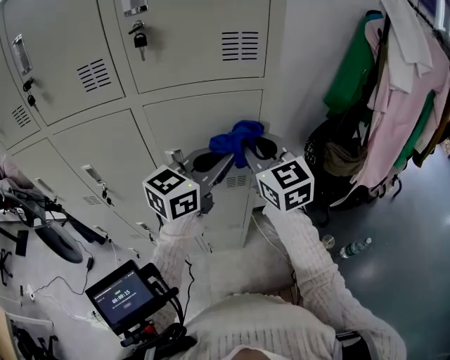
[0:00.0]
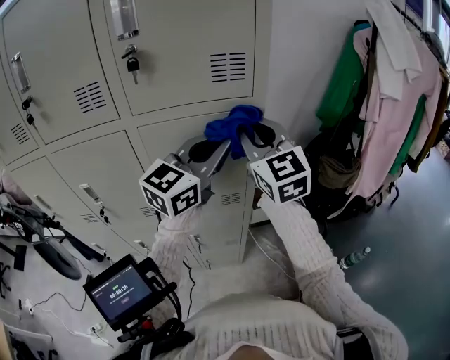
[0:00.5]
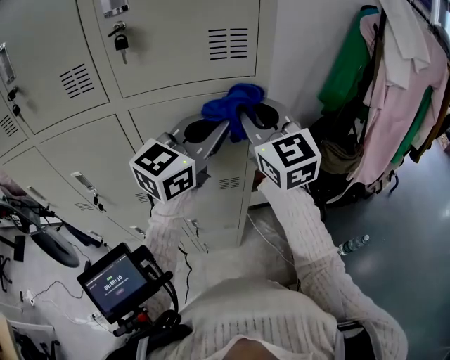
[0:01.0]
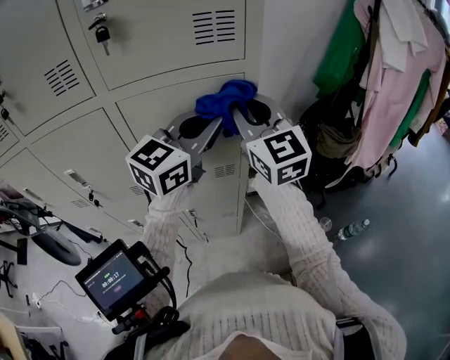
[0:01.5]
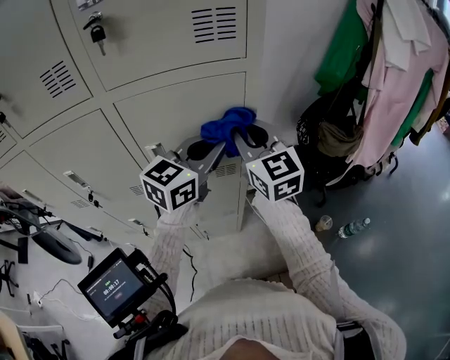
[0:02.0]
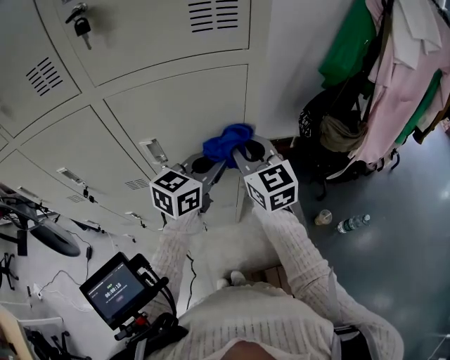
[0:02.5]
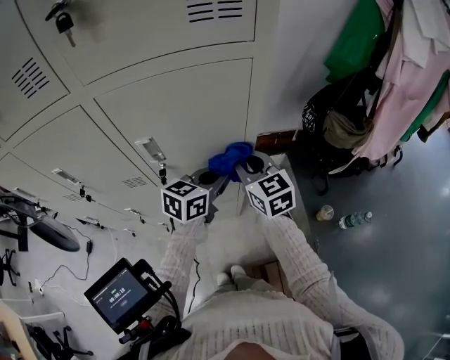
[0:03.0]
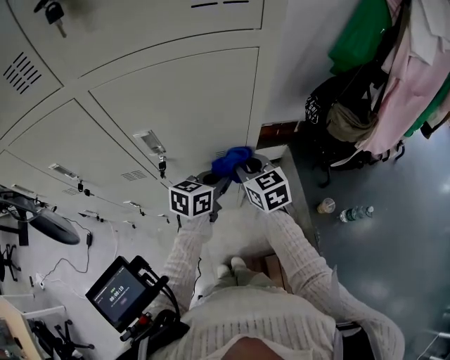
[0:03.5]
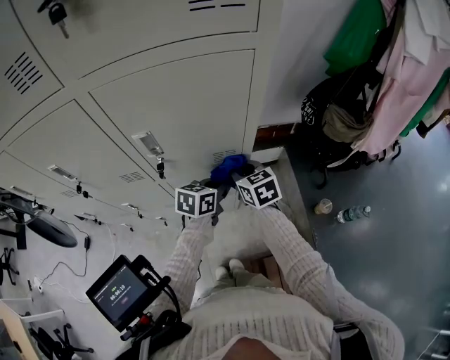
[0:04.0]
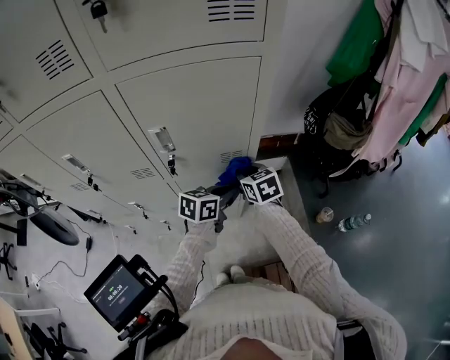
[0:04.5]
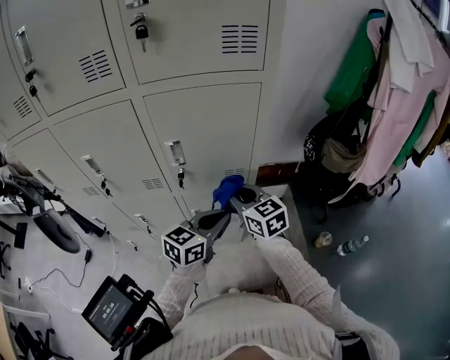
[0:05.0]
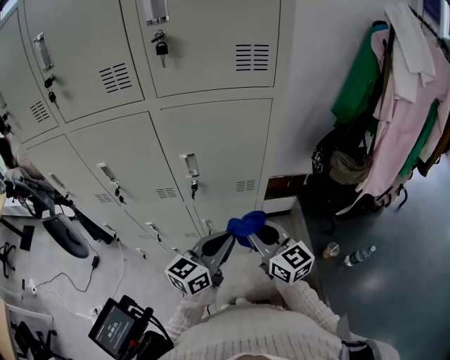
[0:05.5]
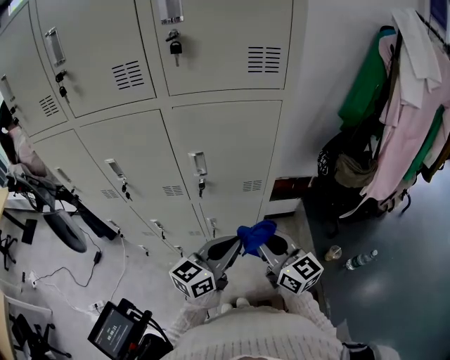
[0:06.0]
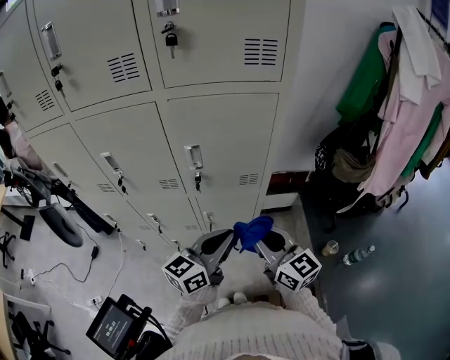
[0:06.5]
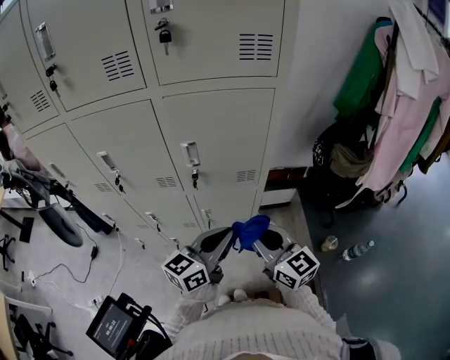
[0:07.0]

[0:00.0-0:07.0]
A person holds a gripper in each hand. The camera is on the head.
0:00.0 to 0:02.0: The right gripper moves roughly 10 cm upward and comes back. The left gripper reaches roughly 5 cm upward, then returns.
0:02.0 to 0:03.5: The grippers both shift downward by roughly 25 cm. The right gripper changes its angle by roughly 30 degrees; the left gripper changes its angle by approximately 30 degrees.
0:03.5 to 0:05.0: Both grippers move backward and upward, approximately 15 cm.
0:05.0 to 0:07.0: The right gripper moves backward, some 15 cm, while the left gripper travels backward by about 5 cm.

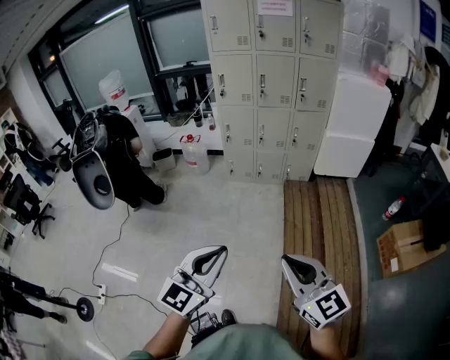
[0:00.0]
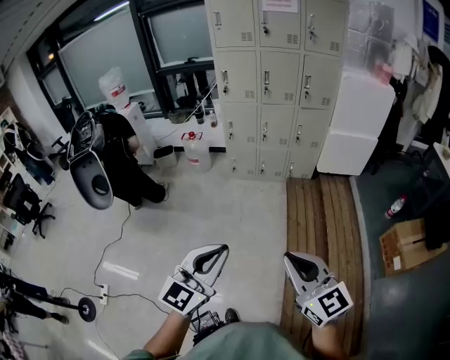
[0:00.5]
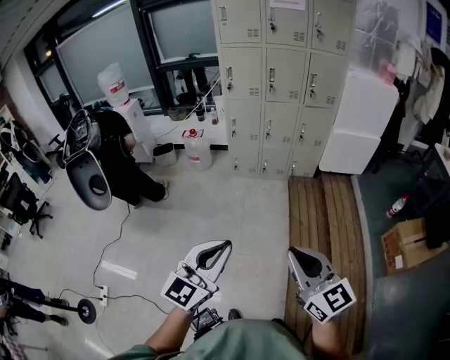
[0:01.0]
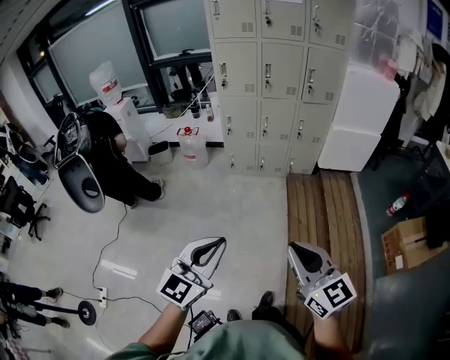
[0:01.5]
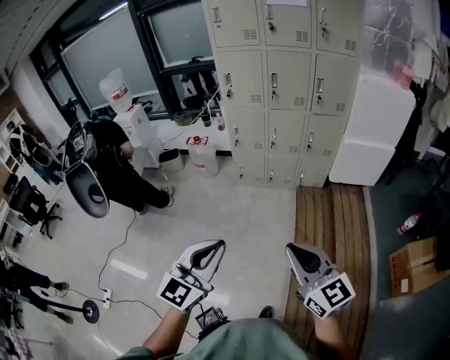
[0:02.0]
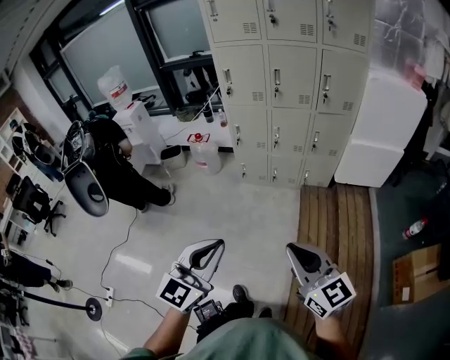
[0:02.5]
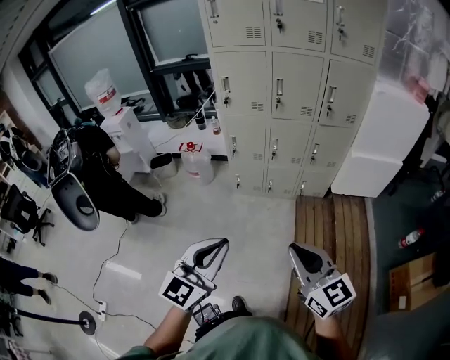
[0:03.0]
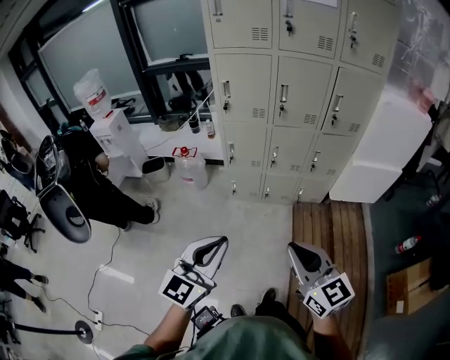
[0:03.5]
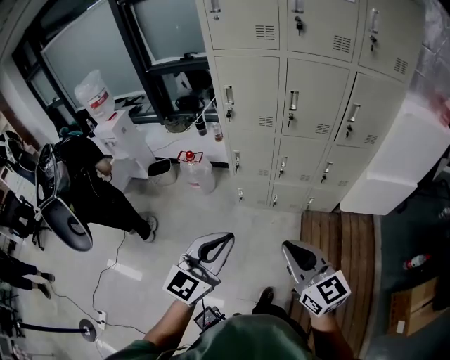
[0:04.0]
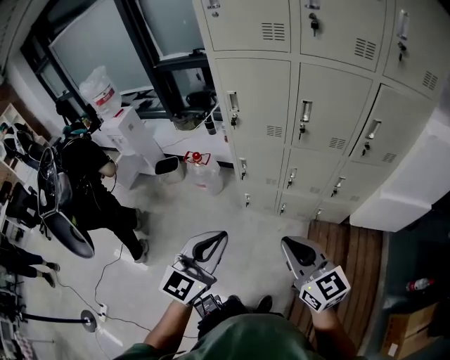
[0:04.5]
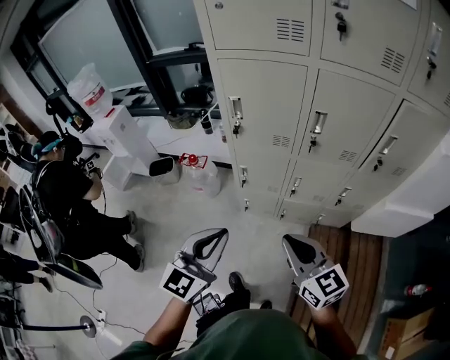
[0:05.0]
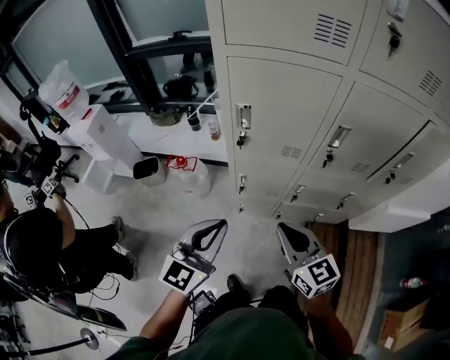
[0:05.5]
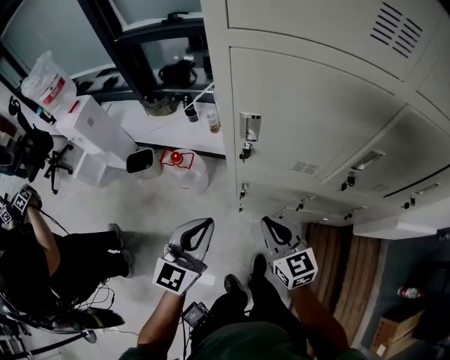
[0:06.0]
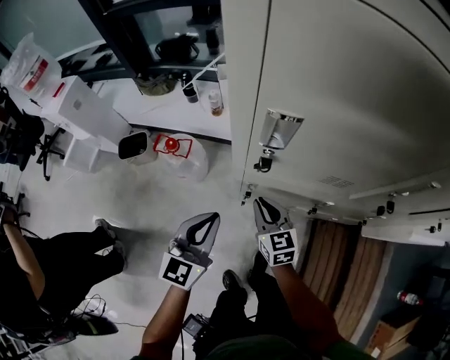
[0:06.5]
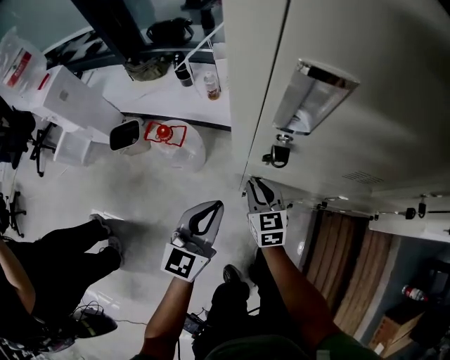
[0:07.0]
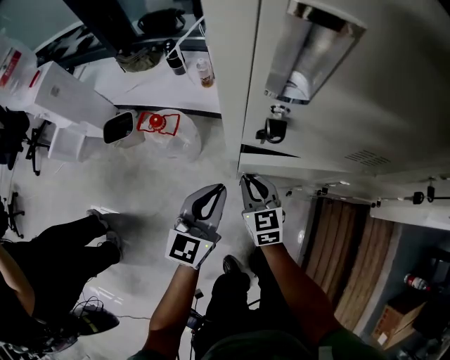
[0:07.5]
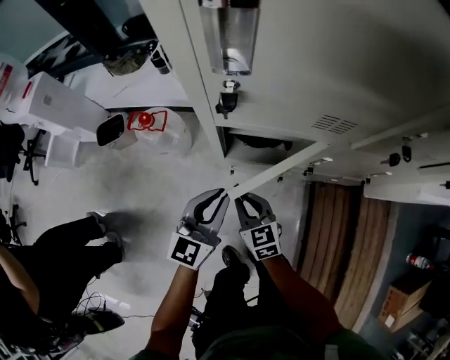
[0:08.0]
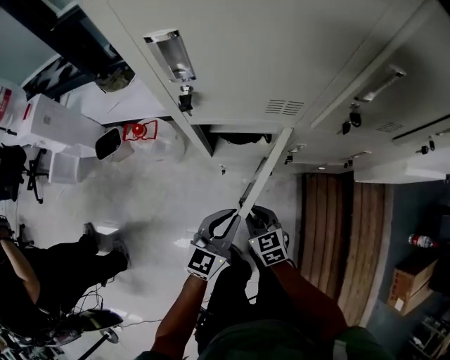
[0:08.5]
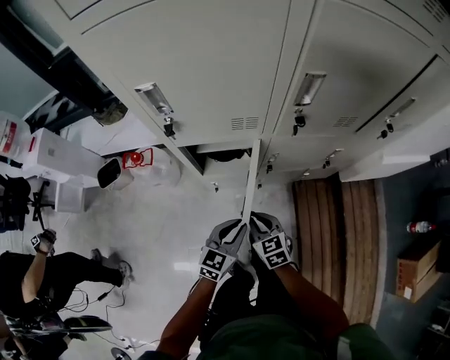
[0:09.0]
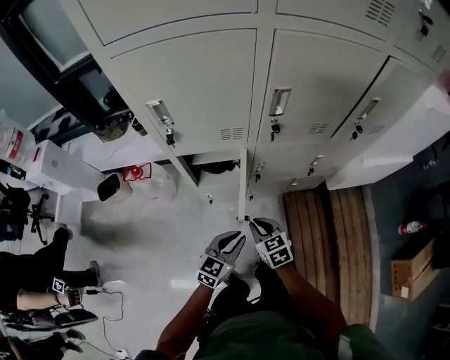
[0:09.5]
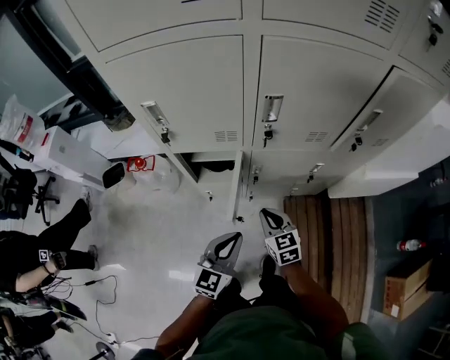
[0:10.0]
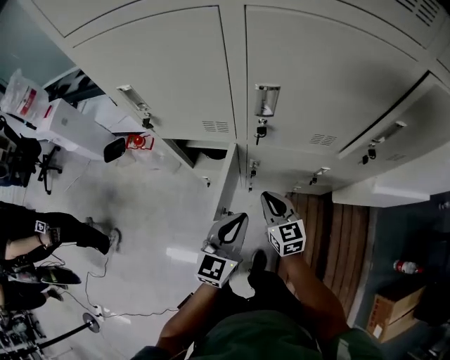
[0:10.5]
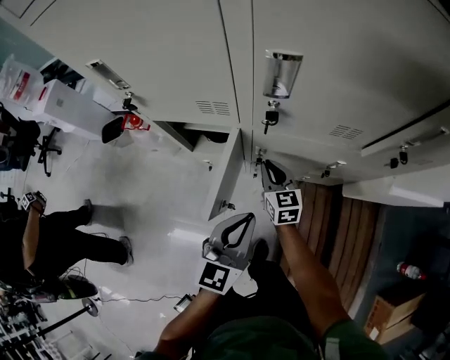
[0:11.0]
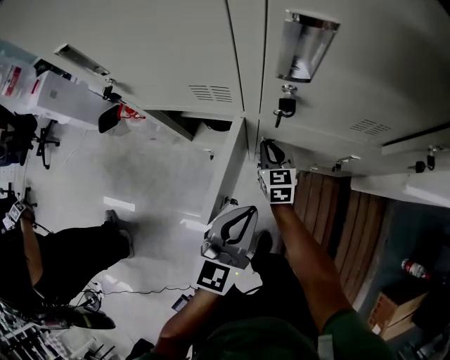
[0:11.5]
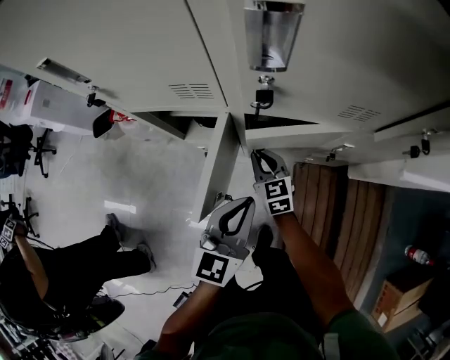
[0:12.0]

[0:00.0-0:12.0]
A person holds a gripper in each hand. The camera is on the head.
0:00.0 to 0:02.0: Both grippers travel together forward, some 20 cm.
0:02.0 to 0:04.0: Both grippers travel together forward, about 35 cm.
0:04.0 to 0:06.0: The two grippers travel together, forward, approximately 50 cm.
0:06.0 to 0:08.0: The two grippers go roughly 25 cm downward.
0:08.0 to 0:10.0: The left gripper is displaced to the right, backward and upward by some 30 cm. Meanwhile the right gripper heads to the right and upward, covering roughly 30 cm.
0:10.0 to 0:12.0: The right gripper heads downward and forward, covering roughly 20 cm. The left gripper travels forward, to the right and downward by some 15 cm.

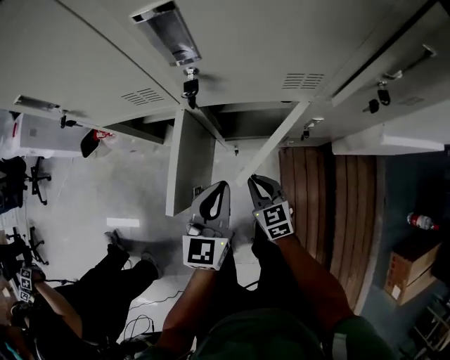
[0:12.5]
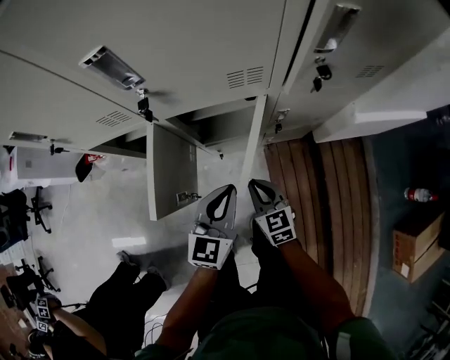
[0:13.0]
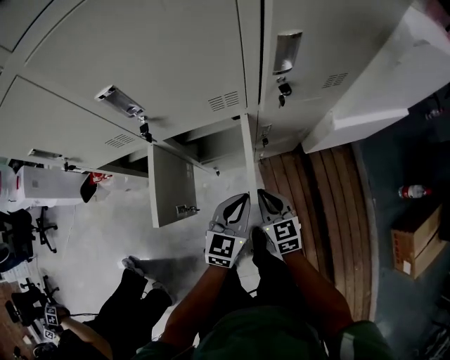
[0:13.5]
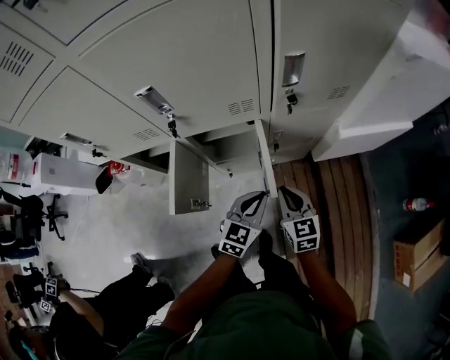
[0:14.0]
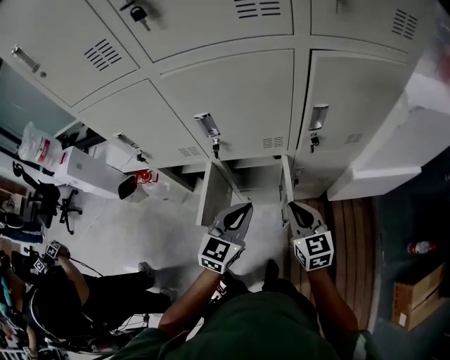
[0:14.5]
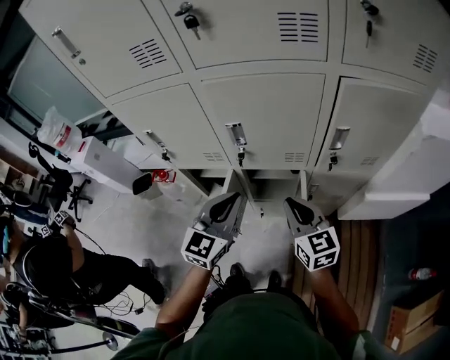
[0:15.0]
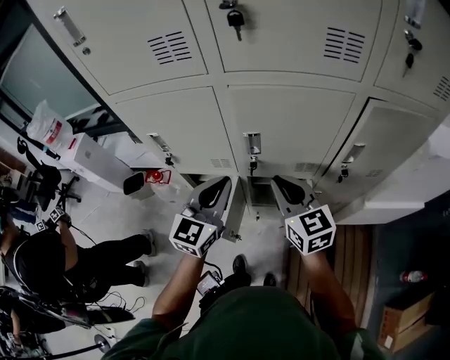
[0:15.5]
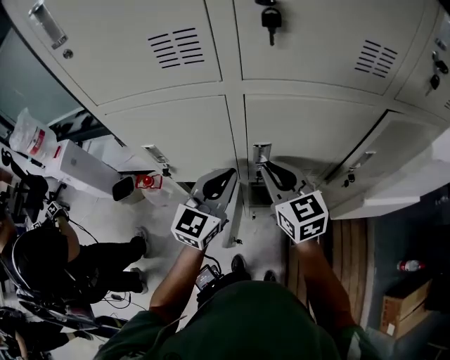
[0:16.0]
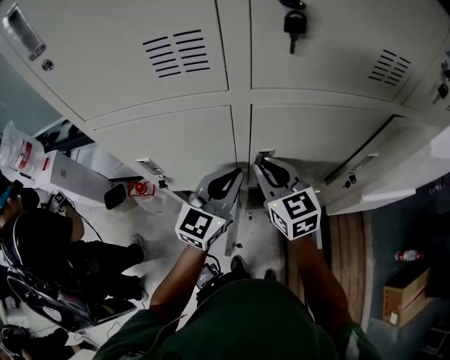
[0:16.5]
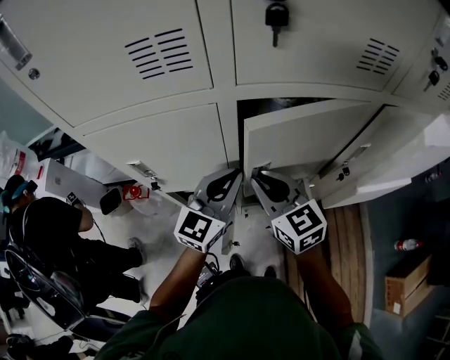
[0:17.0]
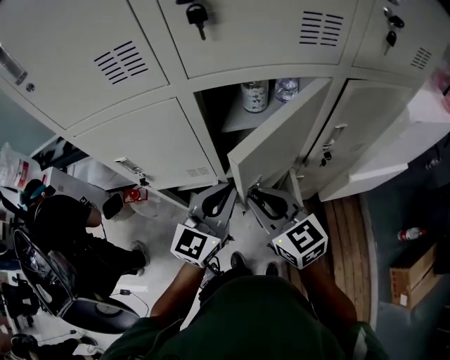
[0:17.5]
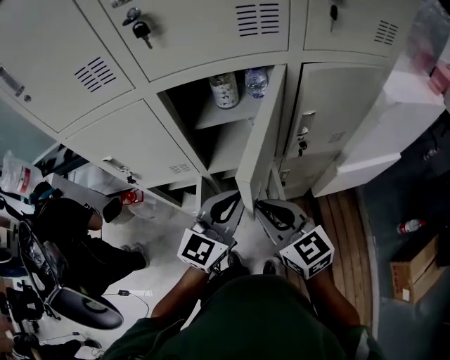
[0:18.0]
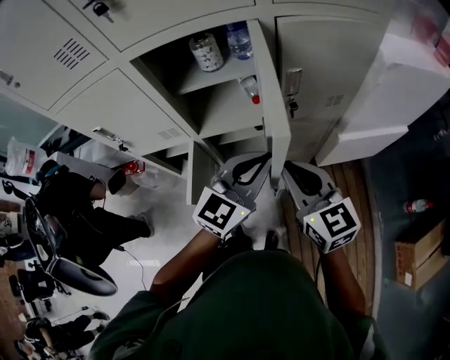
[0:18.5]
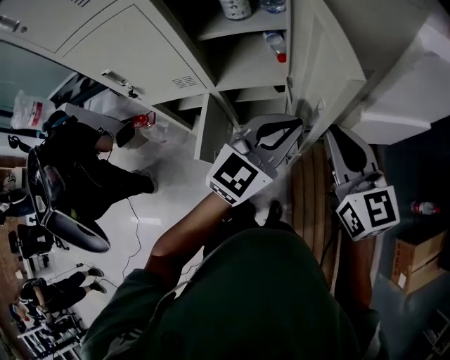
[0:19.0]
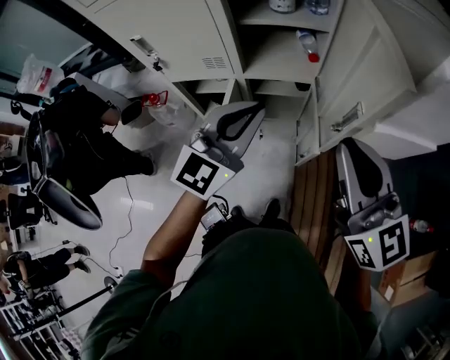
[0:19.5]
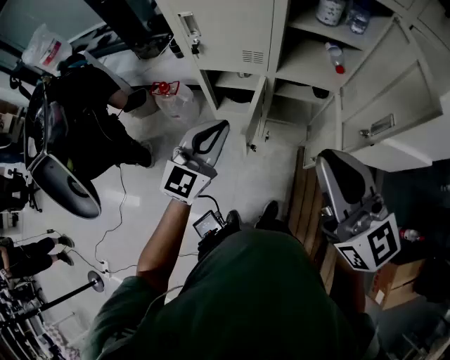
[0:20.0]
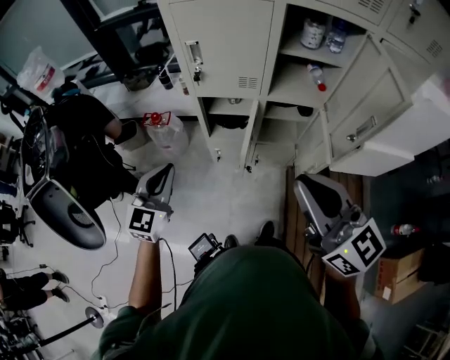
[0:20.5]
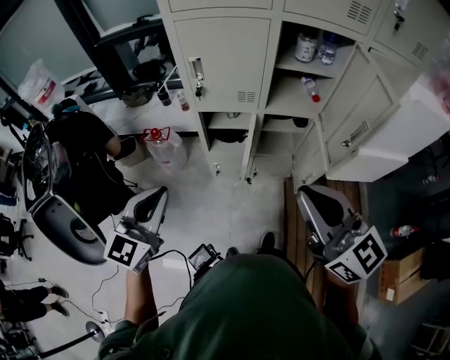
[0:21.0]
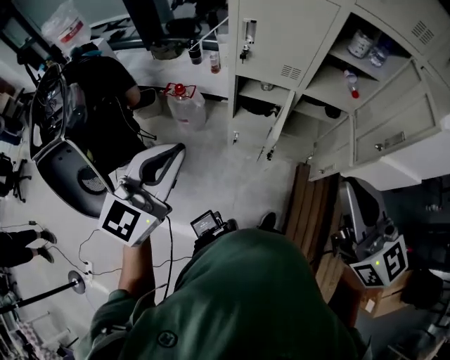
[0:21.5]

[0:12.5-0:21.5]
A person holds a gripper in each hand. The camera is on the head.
0:12.5 to 0:14.5: The left gripper travels upward and to the right by roughly 20 cm; the right gripper heads upward and to the right, covering approximately 30 cm.
0:14.5 to 0:17.0: The right gripper moves to the left, upward and forward, approximately 30 cm. The left gripper is displaced forward, to the left and upward by about 25 cm.
0:17.0 to 0:19.5: The right gripper heads to the right, backward and upward, covering approximately 30 cm. The left gripper heads backward and to the right, covering approximately 20 cm.
0:19.5 to 0:21.5: The left gripper moves to the left and backward, some 40 cm; the right gripper is displaced to the left and backward by some 25 cm.
